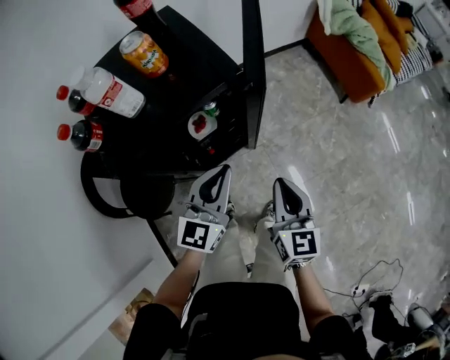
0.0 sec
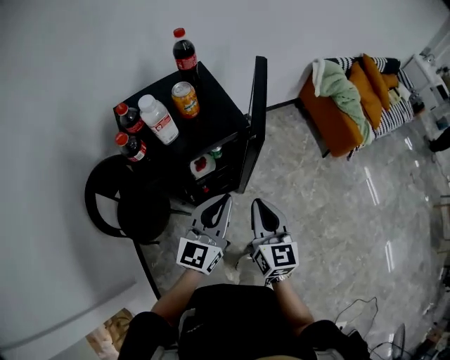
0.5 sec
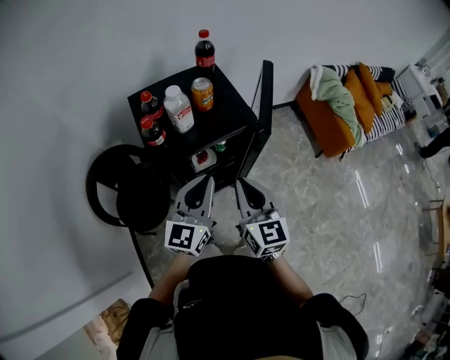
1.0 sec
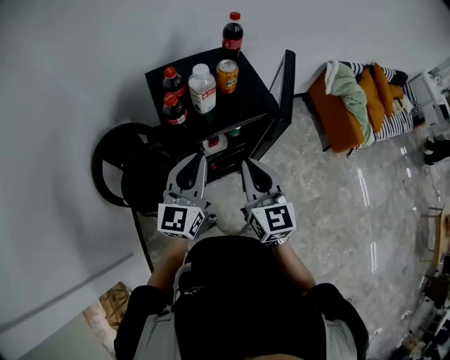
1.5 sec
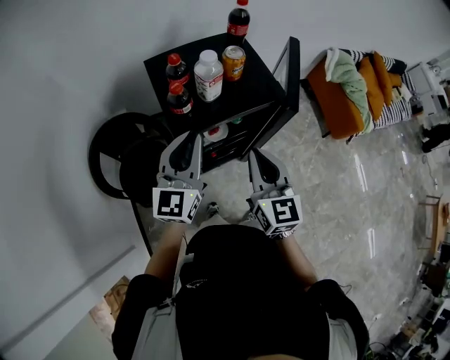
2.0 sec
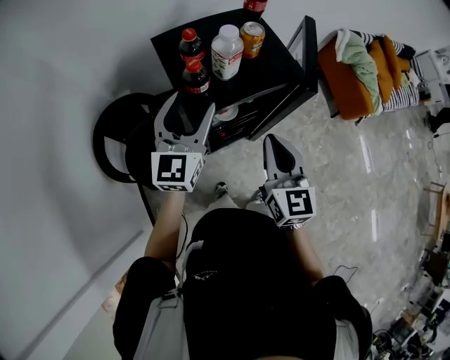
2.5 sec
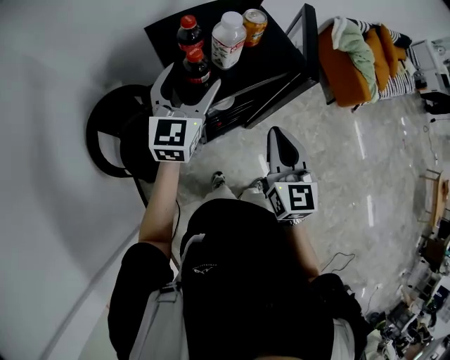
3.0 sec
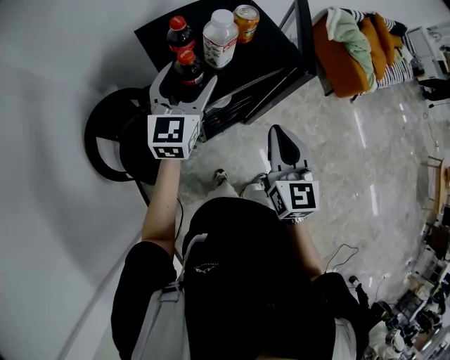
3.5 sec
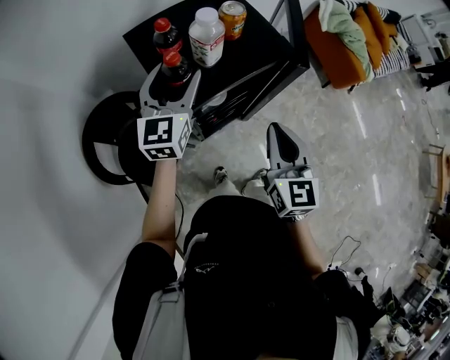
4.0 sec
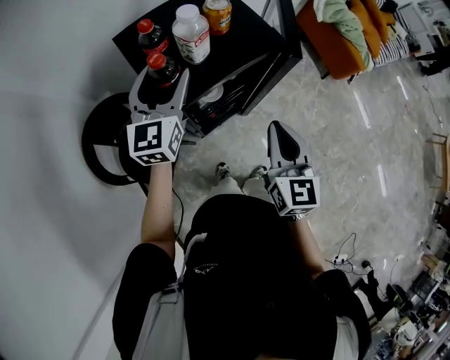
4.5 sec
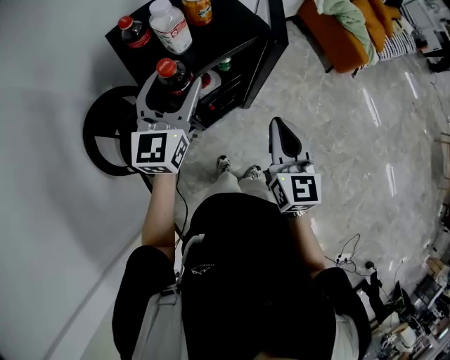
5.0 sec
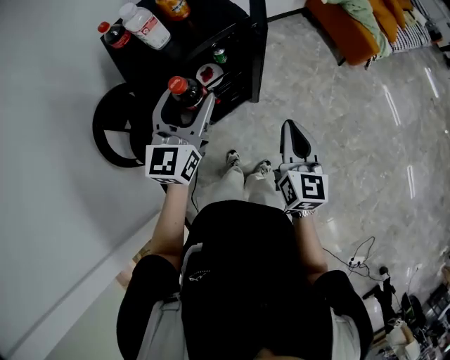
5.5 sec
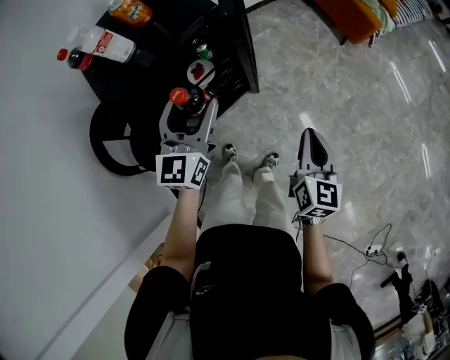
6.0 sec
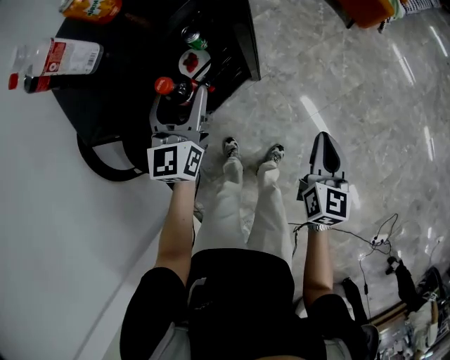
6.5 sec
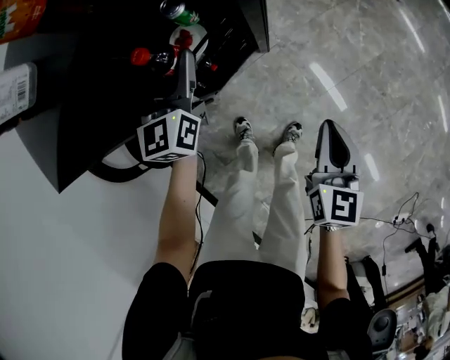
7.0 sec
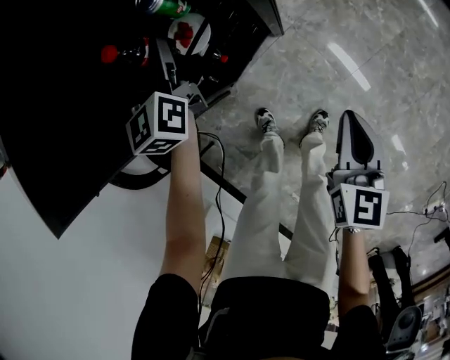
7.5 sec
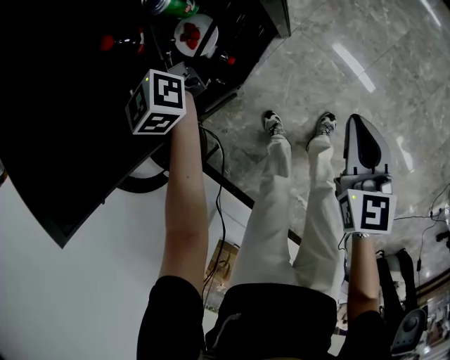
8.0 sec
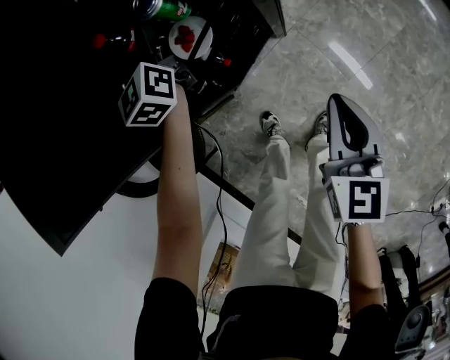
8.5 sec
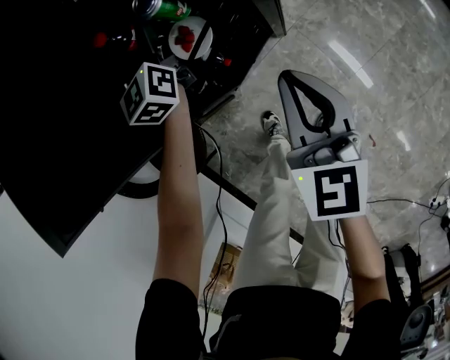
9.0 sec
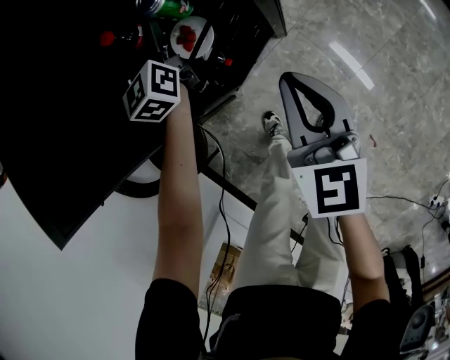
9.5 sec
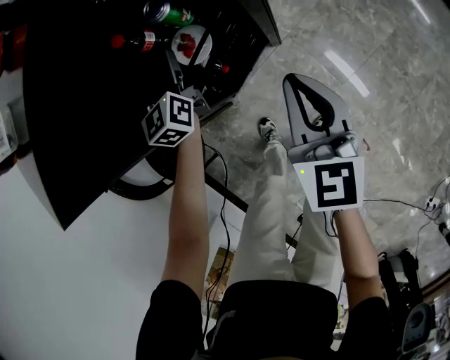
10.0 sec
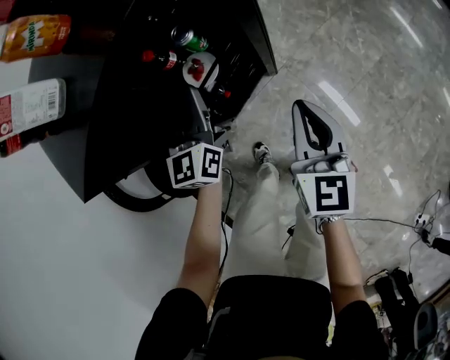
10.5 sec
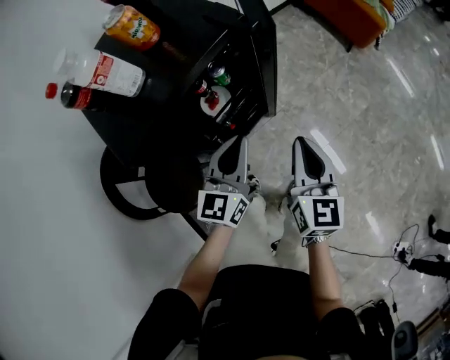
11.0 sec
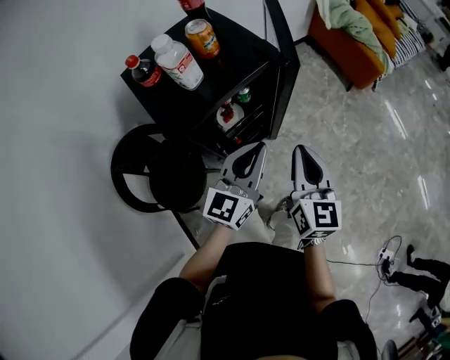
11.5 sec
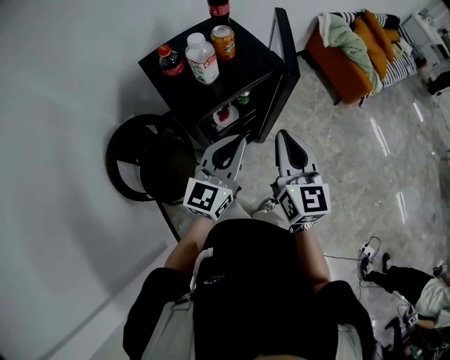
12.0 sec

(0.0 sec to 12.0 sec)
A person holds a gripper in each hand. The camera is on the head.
0.0 sec - 2.0 sec: The right gripper moves upward and to the left, about 25 cm; the left gripper shifts some 30 cm to the left and upward.
2.0 sec - 4.0 sec: The left gripper travels forward by some 10 cm, and opens its fingers.
4.0 sec - 6.0 sec: The left gripper travels to the right and backward by about 25 cm; the right gripper heads to the right and downward, covering some 30 cm, and turns by about 30 degrees.
6.0 sec - 8.0 sec: The left gripper moves downward, forward and to the left, some 40 cm. The right gripper travels downward by some 25 cm.
8.0 sec - 10.0 sec: The left gripper moves some 5 cm. Meanwhile the right gripper shifts some 15 cm forward, upward and to the left.
10.0 sec - 12.0 sec: The left gripper goes roughly 50 cm upward and backward, rotates roughly 30 degrees, and closes up; the right gripper travels upward by approximately 35 cm.

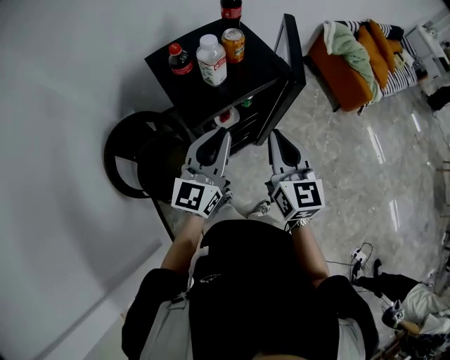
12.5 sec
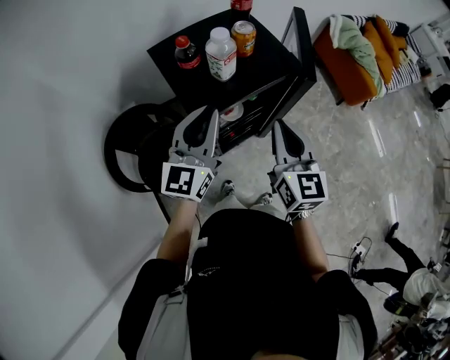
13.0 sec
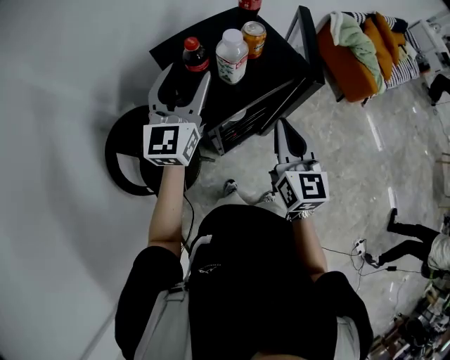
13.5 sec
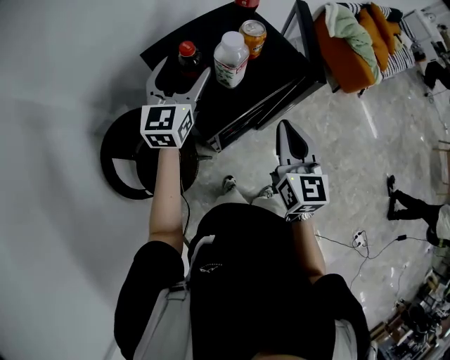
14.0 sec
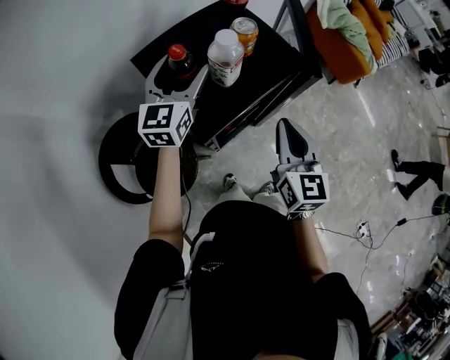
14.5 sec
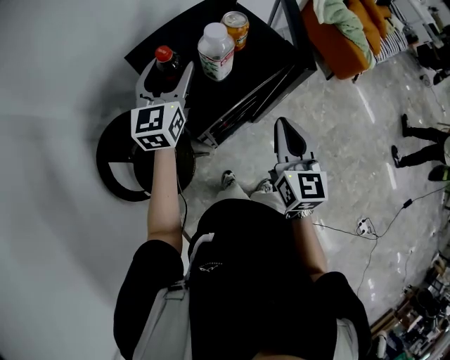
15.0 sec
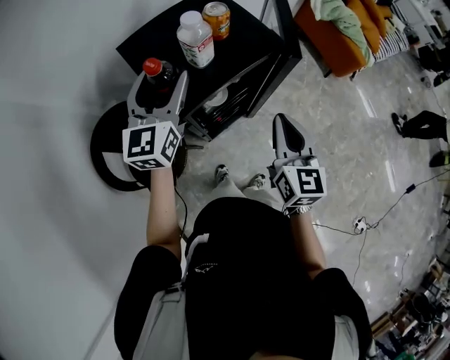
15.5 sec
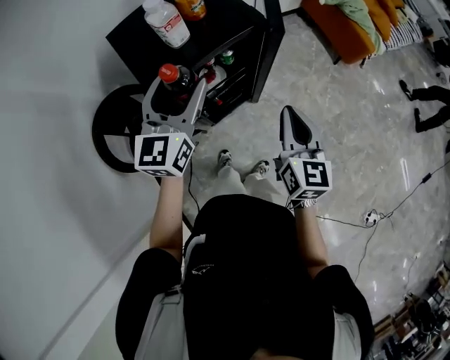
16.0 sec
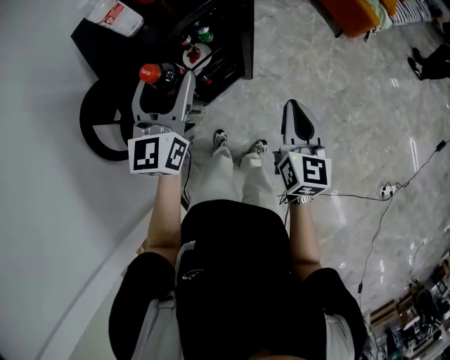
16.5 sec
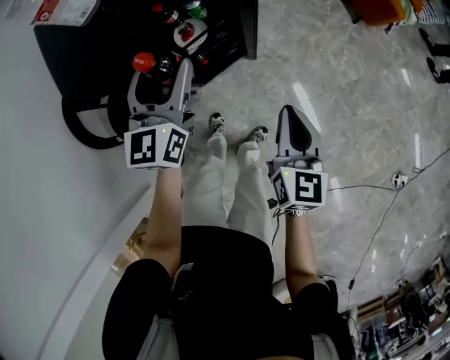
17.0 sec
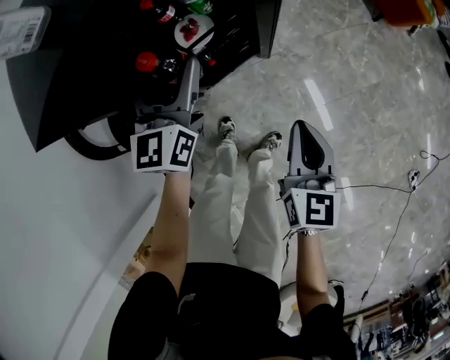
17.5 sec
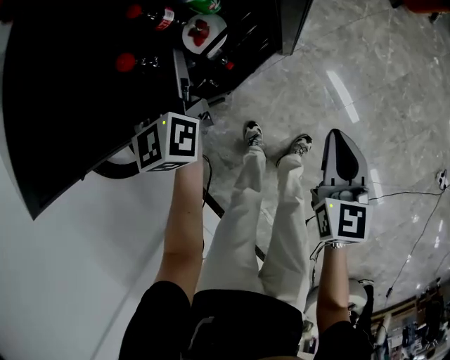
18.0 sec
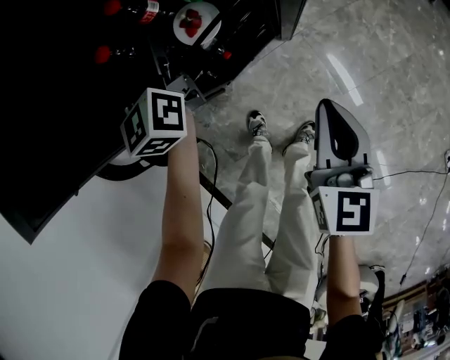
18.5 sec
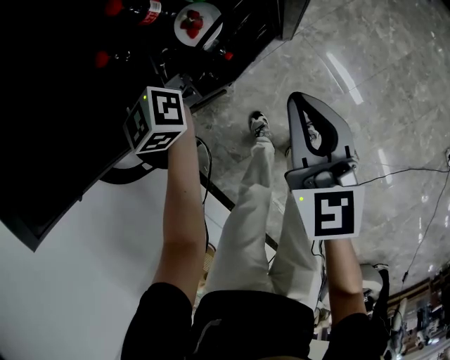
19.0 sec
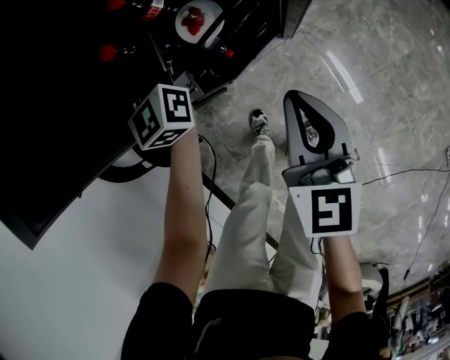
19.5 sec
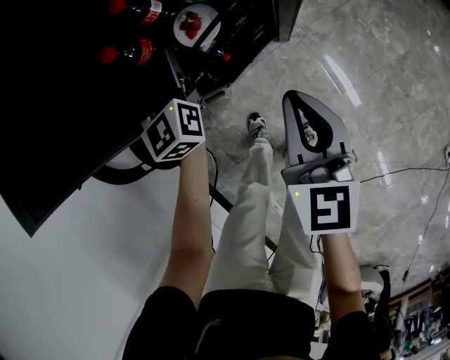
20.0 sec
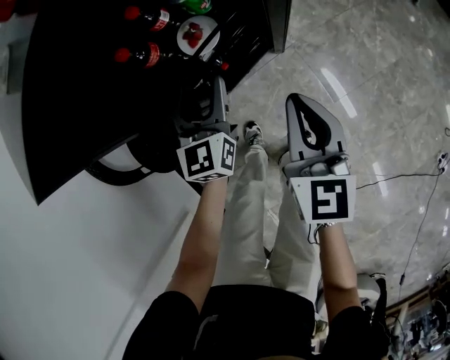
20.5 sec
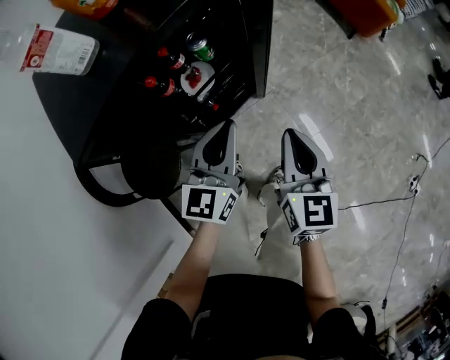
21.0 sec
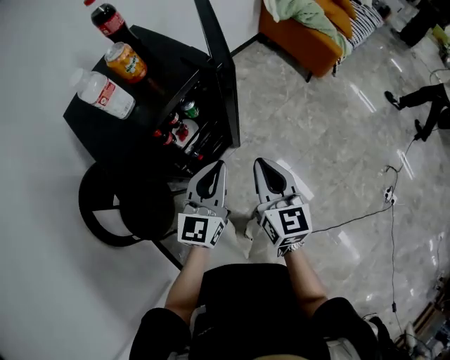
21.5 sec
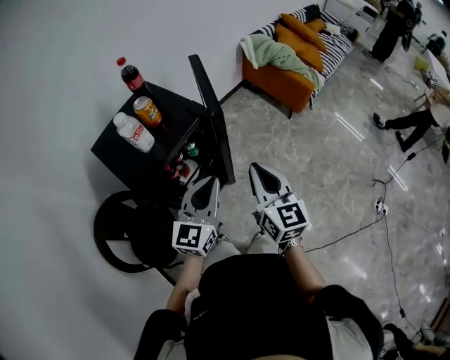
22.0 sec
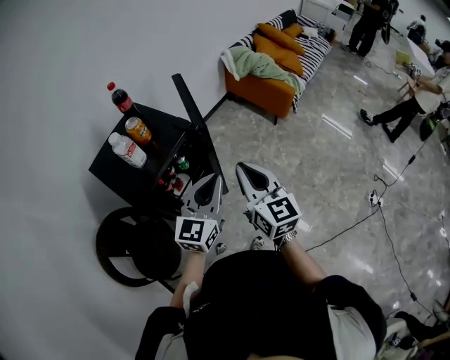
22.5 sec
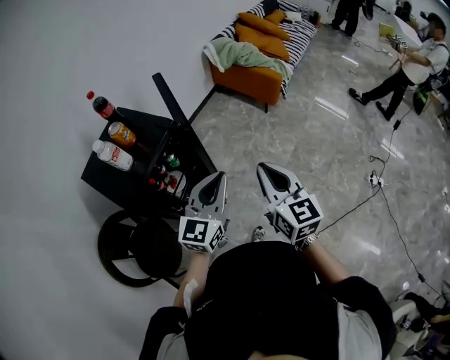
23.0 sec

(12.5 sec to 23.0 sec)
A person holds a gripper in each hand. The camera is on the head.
12.5 sec - 14.5 sec: The right gripper moves forward, about 5 cm; the left gripper is displaced forward and to the left by some 25 cm, and opens its fingers.
14.5 sec - 16.5 sec: The right gripper moves to the right and downward, some 25 cm, while the left gripper is displaced to the right and backward by some 25 cm.
16.5 sec - 19.0 sec: The left gripper moves downward and forward, roughly 40 cm, and changes its angle by approximately 30 degrees. The right gripper moves downward, to the left and forward, about 30 cm.
19.0 sec - 21.0 sec: The left gripper moves backward, to the right and upward, some 30 cm, rotates about 40 degrees, and closes its fingers. Meanwhile the right gripper heads upward, backward and to the right, covering about 15 cm.
21.0 sec - 23.0 sec: The right gripper travels upward by about 30 cm, while the left gripper travels upward and to the right by roughly 35 cm, and rotates some 30 degrees.

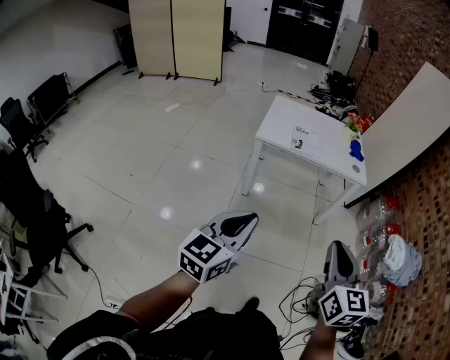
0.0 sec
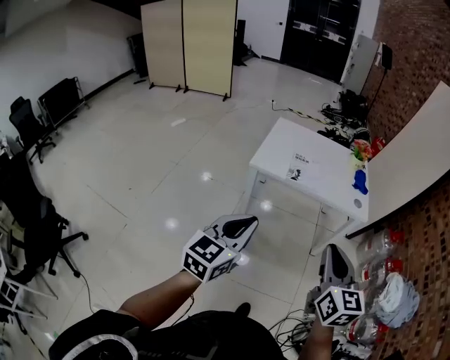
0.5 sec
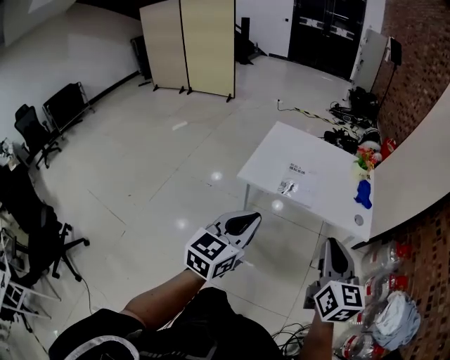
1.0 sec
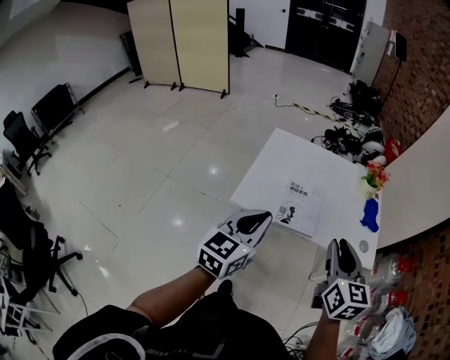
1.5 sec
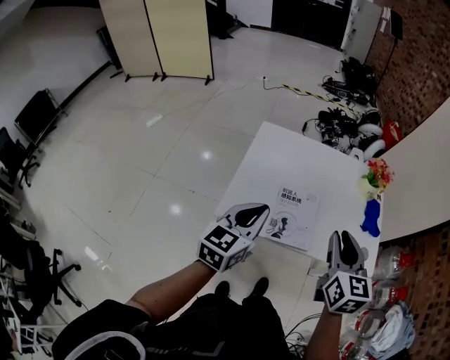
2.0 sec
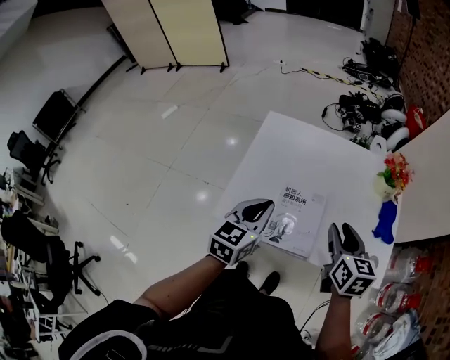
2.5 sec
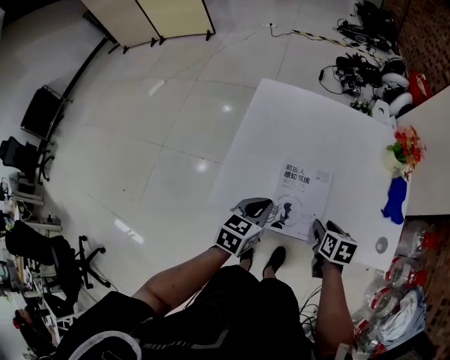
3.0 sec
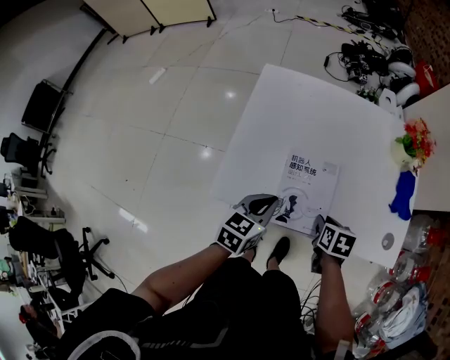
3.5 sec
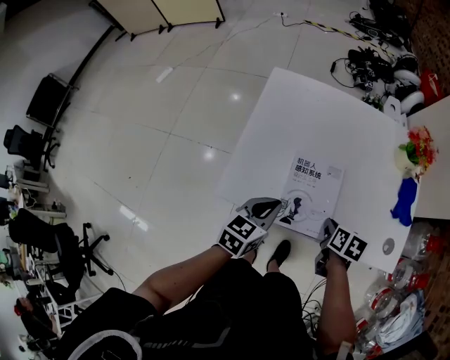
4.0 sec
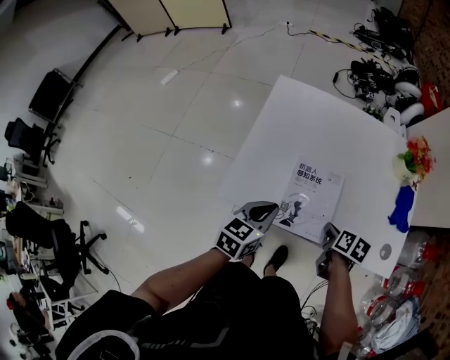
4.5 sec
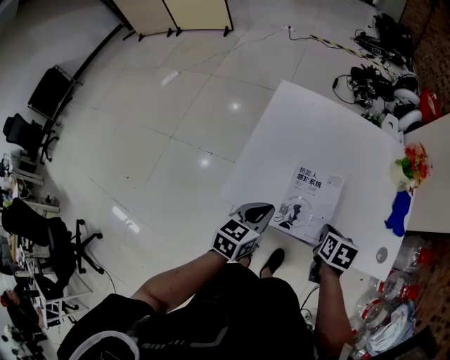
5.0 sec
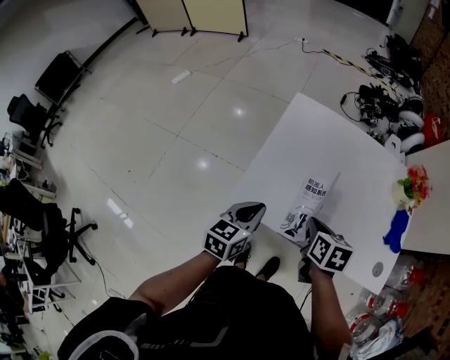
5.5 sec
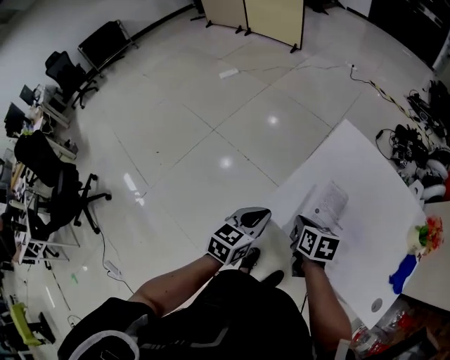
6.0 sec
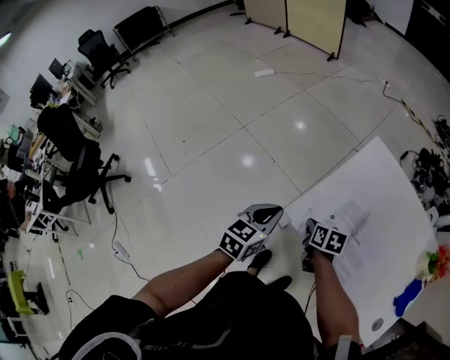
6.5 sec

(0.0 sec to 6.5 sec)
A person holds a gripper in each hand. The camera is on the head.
0.0 sec - 2.0 sec: Both grippers are carried forward, approximately 70 cm.
2.0 sec - 4.5 sec: The left gripper shifts approximately 20 cm downward, and rotates some 20 degrees. The right gripper is displaced downward by about 30 cm, tilts its fingers some 40 degrees downward, and opens, then closes once more.
4.5 sec - 6.5 sec: The left gripper shifts by some 25 cm, and rotates some 30 degrees. Meanwhile the right gripper goes upward and returns, roughly 10 cm each way, and turns by roughly 40 degrees.
